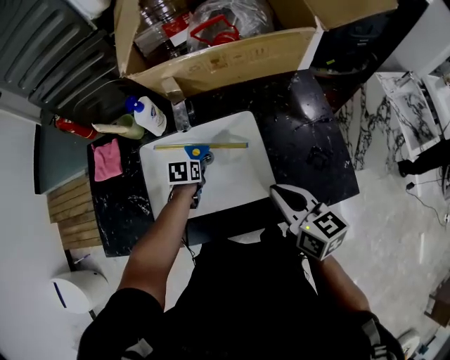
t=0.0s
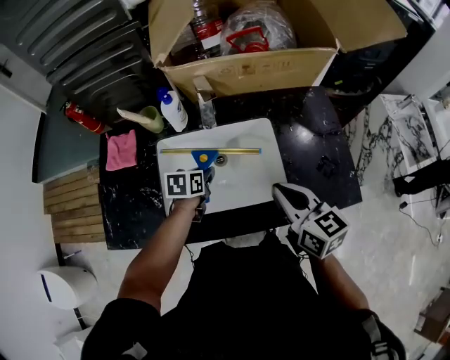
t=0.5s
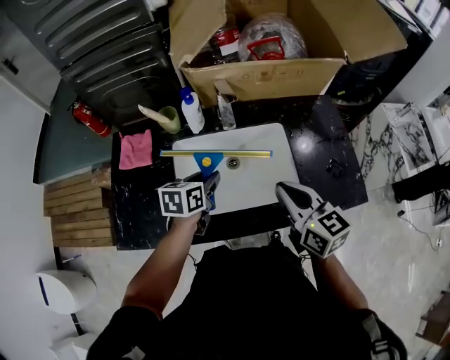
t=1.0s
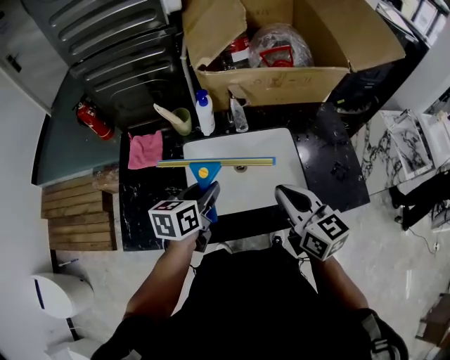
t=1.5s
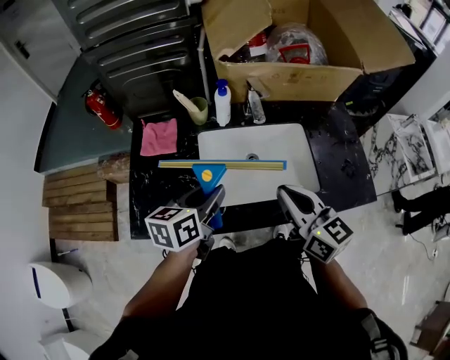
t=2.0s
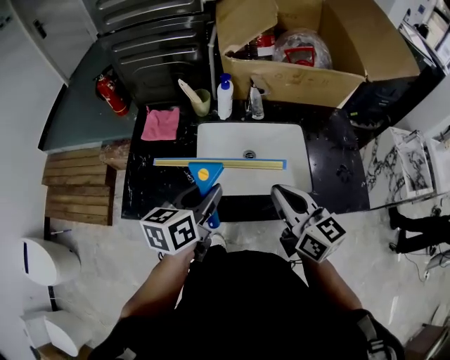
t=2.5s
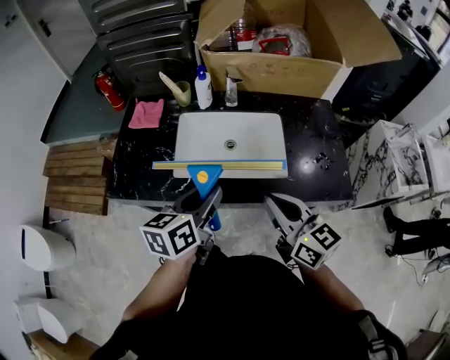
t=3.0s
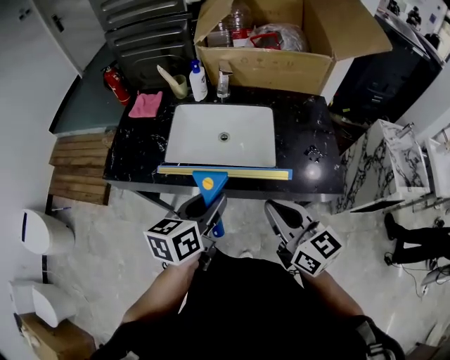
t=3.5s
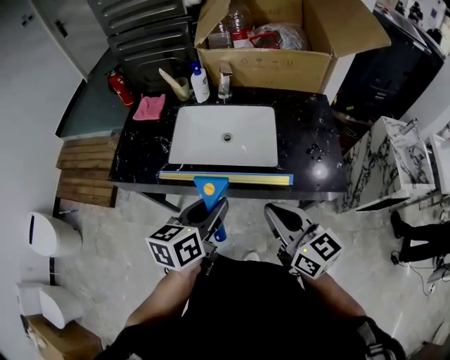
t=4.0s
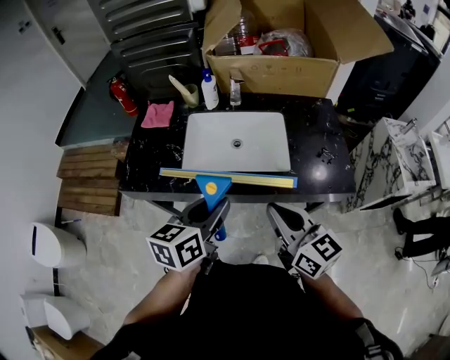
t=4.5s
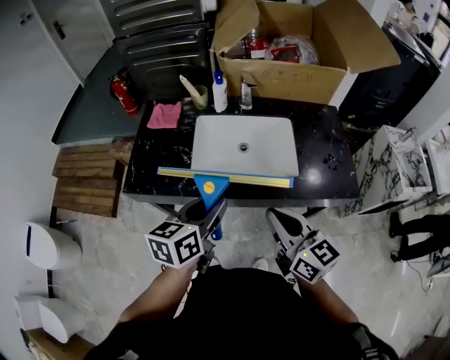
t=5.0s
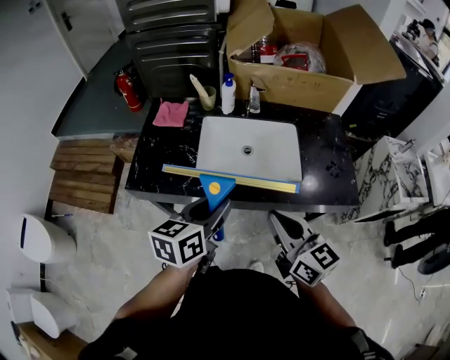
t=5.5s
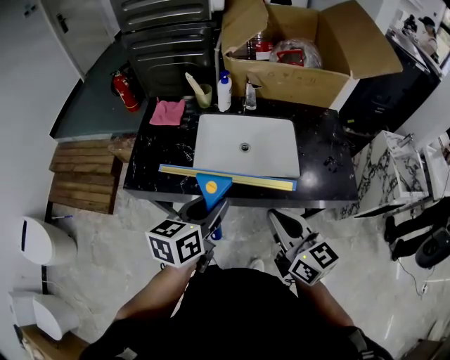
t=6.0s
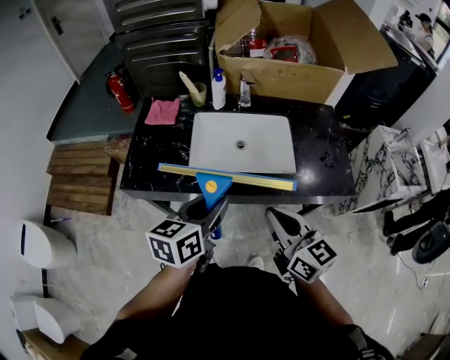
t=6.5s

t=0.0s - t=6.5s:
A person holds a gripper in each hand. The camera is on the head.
t=0.0s - t=2.0s: The left gripper shifts some 35 cm upward, backward and to the left, and angles its fingers upward, by about 40 degrees. Meanwhile the right gripper is displaced to the left by approximately 20 cm.
t=2.0s - t=4.5s: Both grippers move backward and to the right, about 20 cm.
t=4.5s - t=6.5s: The grippers both shift to the left by roughly 5 cm.

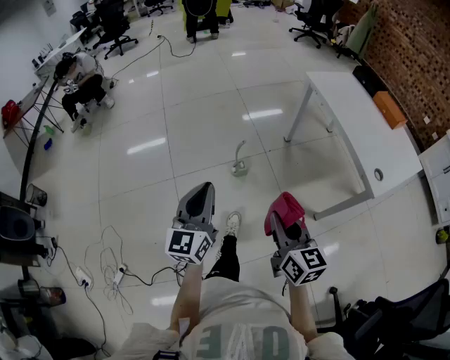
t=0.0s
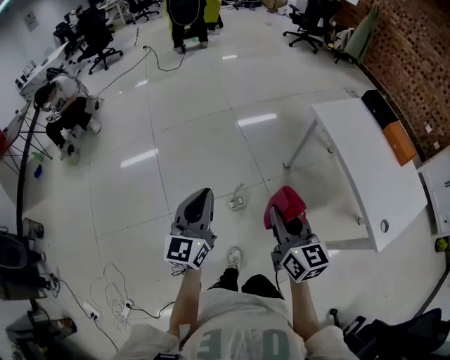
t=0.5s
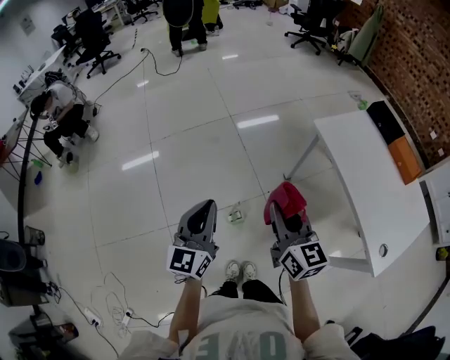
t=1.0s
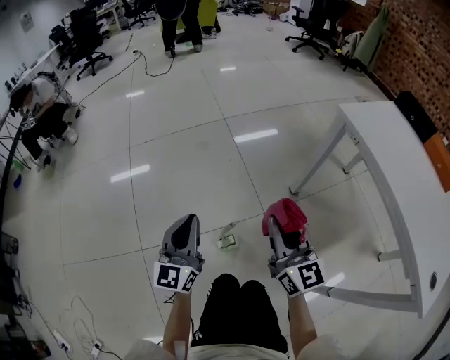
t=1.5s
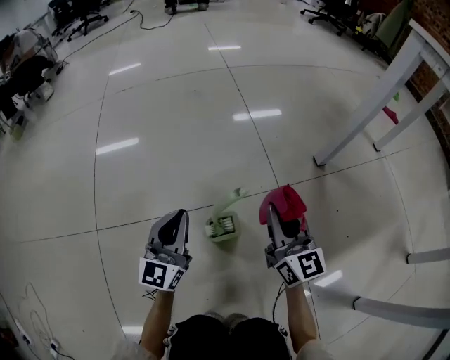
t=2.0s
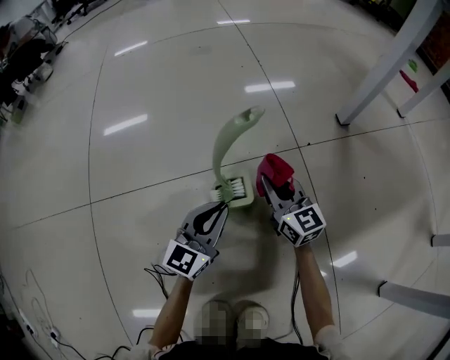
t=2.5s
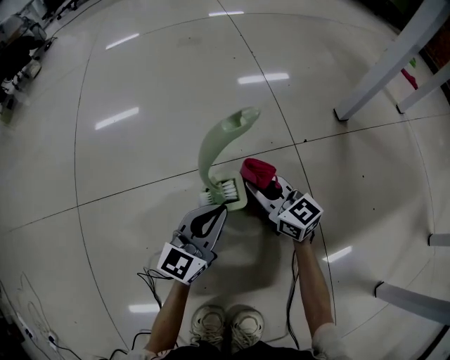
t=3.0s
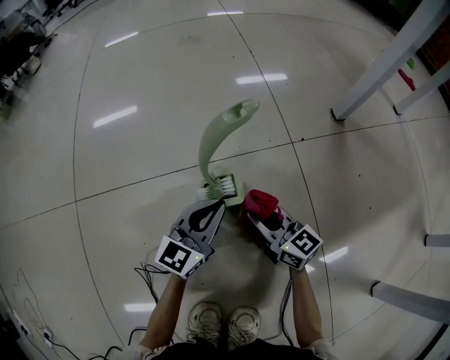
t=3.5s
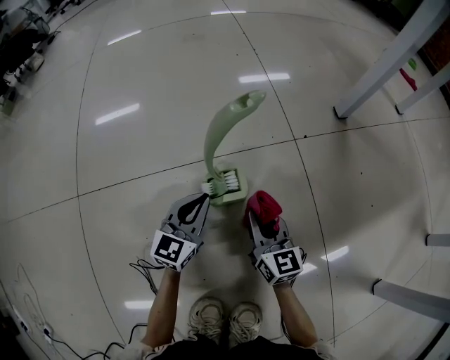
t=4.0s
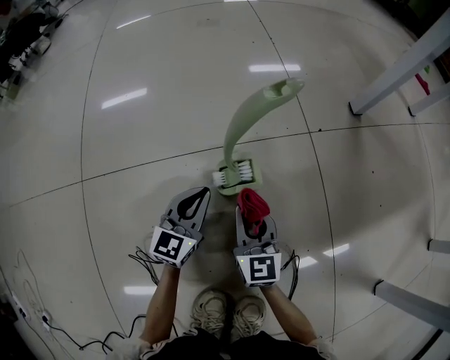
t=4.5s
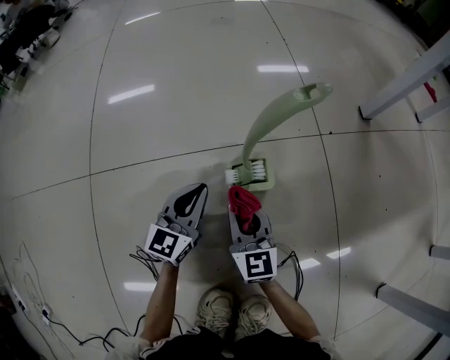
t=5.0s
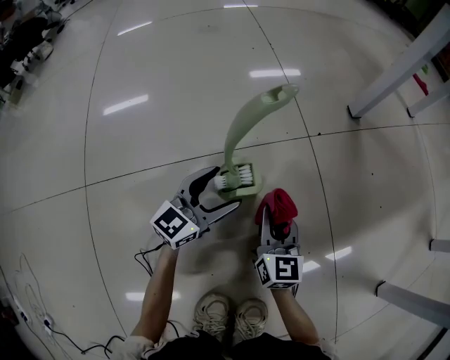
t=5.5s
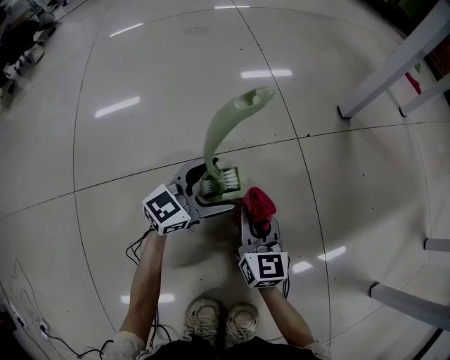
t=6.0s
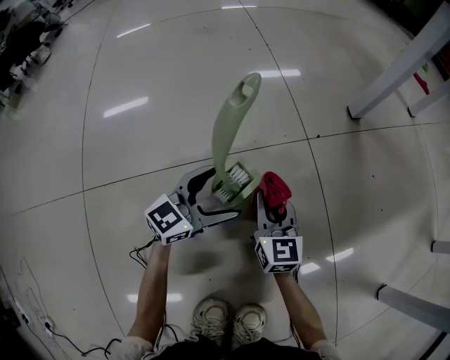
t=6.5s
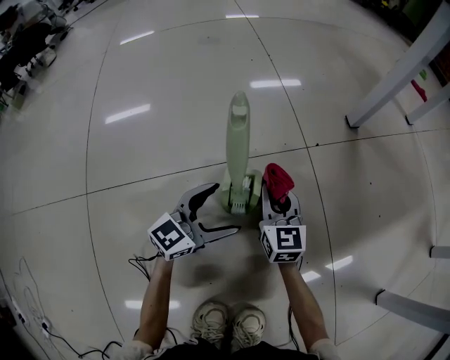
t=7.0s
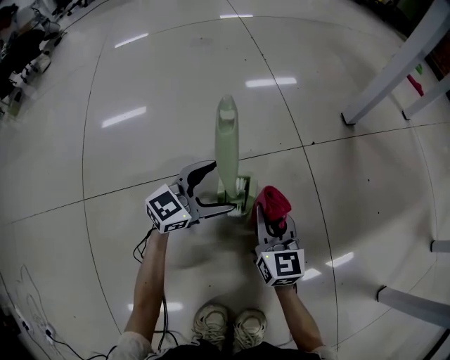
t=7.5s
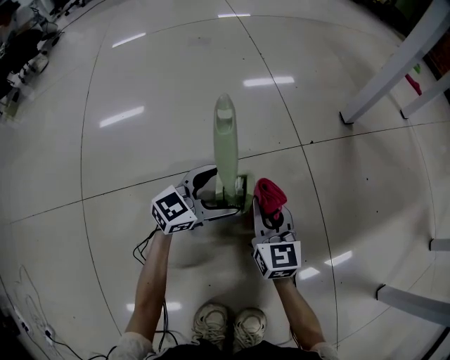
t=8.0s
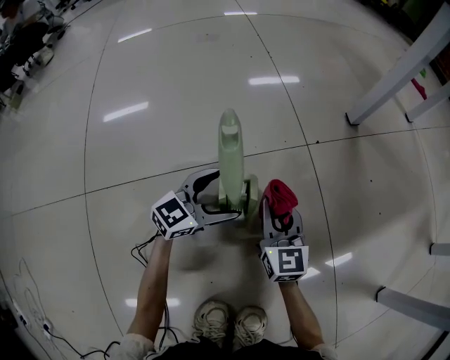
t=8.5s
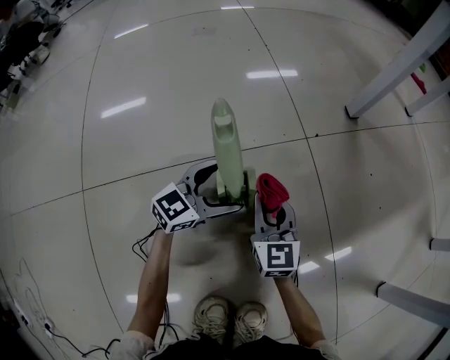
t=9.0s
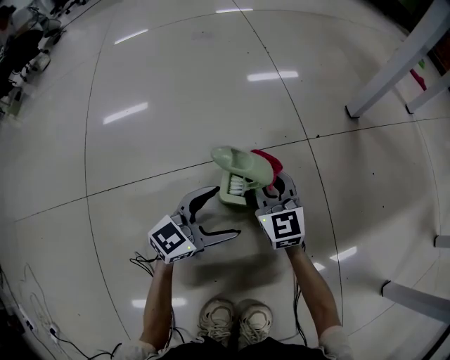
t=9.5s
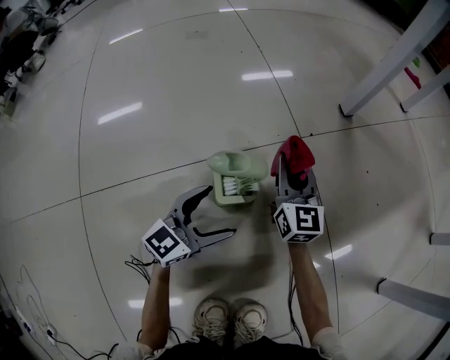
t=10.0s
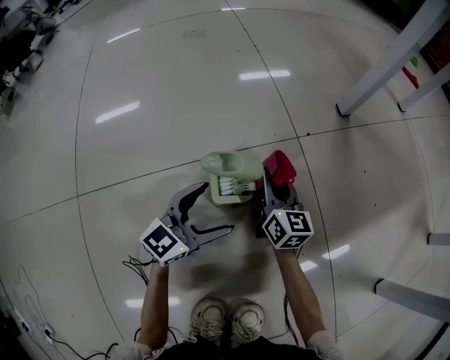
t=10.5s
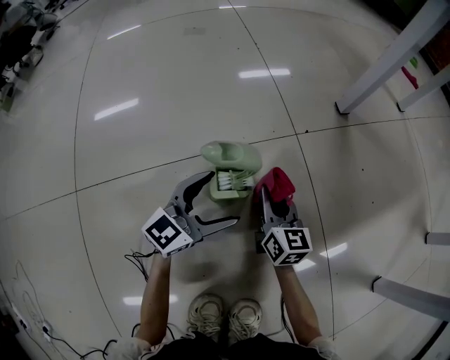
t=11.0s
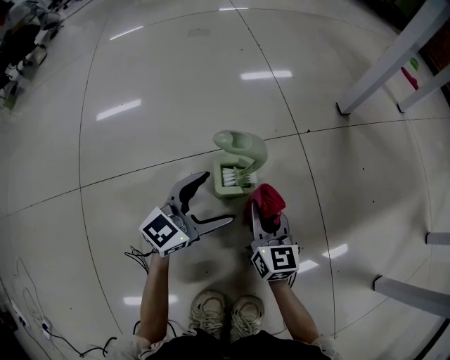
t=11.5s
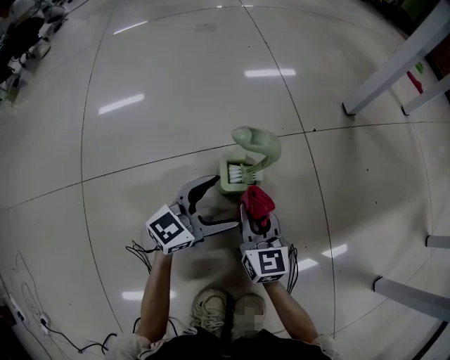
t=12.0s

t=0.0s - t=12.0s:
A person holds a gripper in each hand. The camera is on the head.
t=0.0s - t=2.0s: Both grippers are carried forward, roughly 50 cm. The grippers both shift downward by roughly 70 cm.
t=2.0s - t=4.0s: The grippers both shift downward by roughly 20 cm. The left gripper rotates approximately 20 degrees.
t=4.0s - t=6.0s: The right gripper reaches roughly 10 cm to the left, then returns; the left gripper changes place by about 5 cm, turns by approximately 30 degrees, and opens.
t=8.0s - t=10.0s: The right gripper goes some 10 cm forward. The left gripper shifts approximately 5 cm backward.
t=10.0s - t=12.0s: The right gripper travels backward by approximately 15 cm.

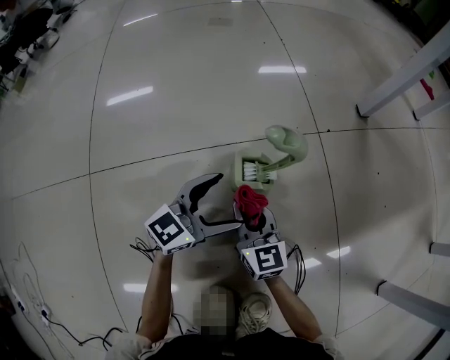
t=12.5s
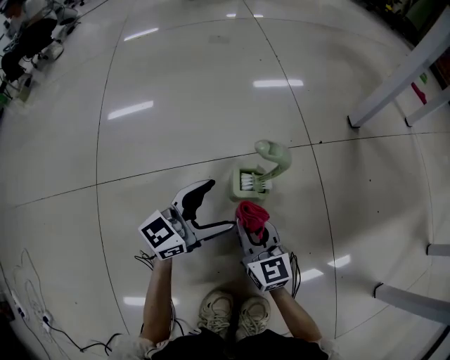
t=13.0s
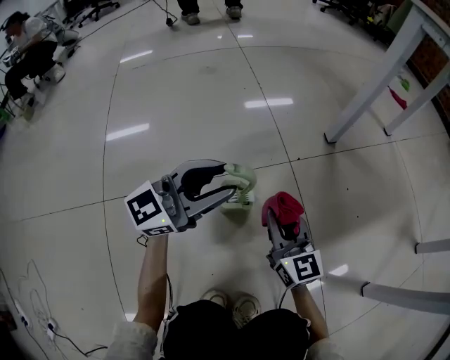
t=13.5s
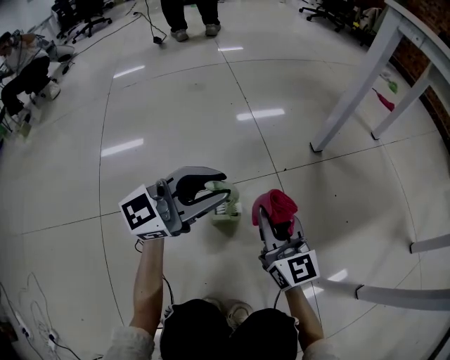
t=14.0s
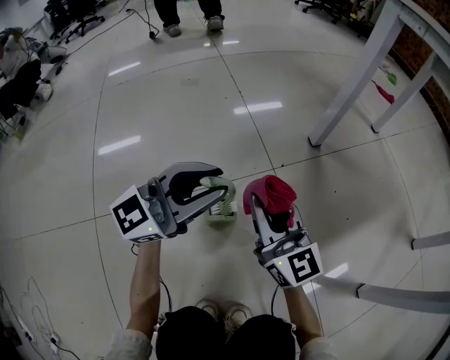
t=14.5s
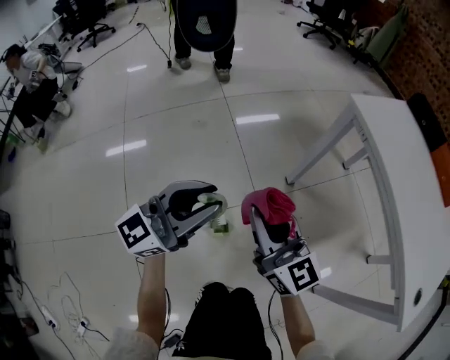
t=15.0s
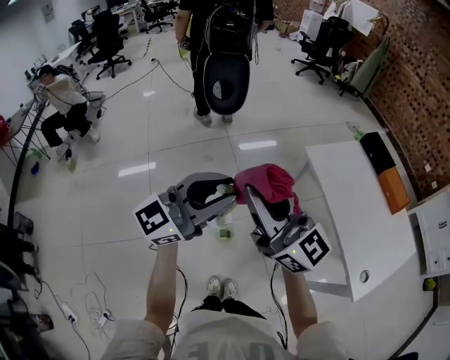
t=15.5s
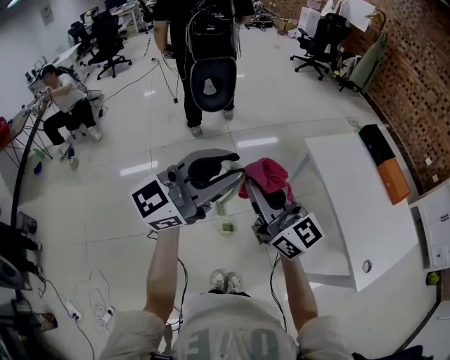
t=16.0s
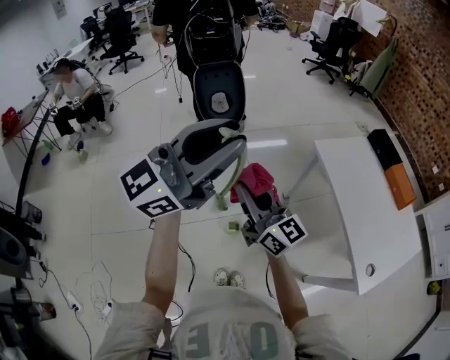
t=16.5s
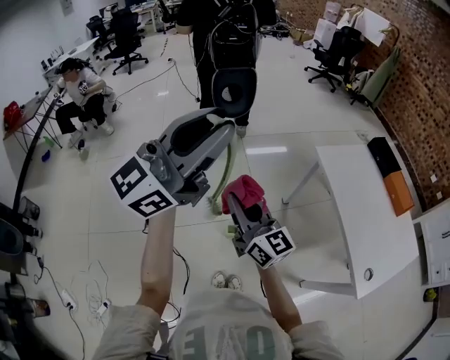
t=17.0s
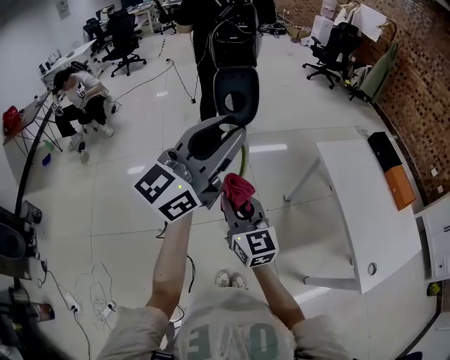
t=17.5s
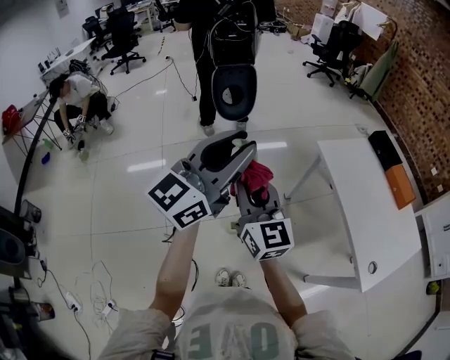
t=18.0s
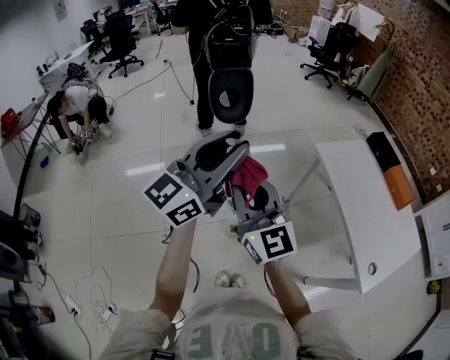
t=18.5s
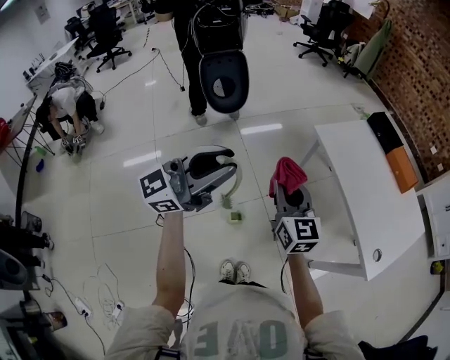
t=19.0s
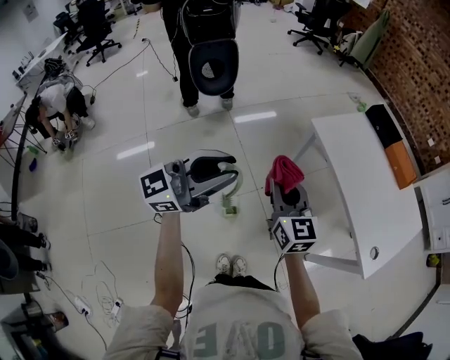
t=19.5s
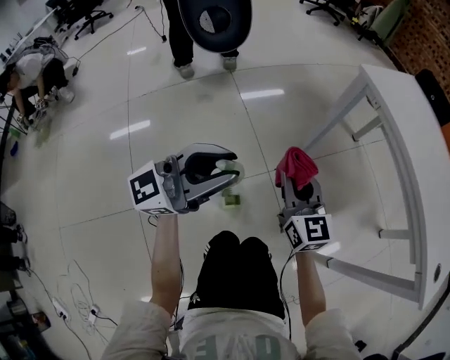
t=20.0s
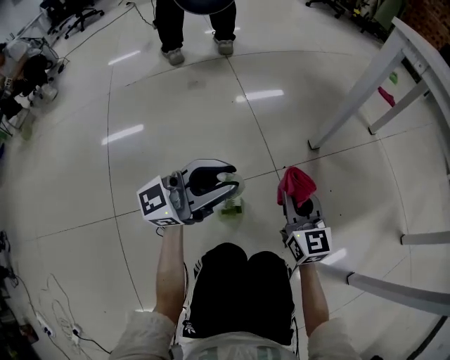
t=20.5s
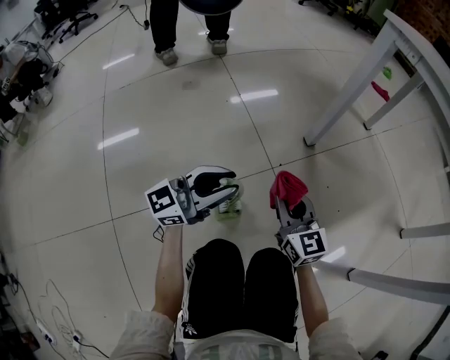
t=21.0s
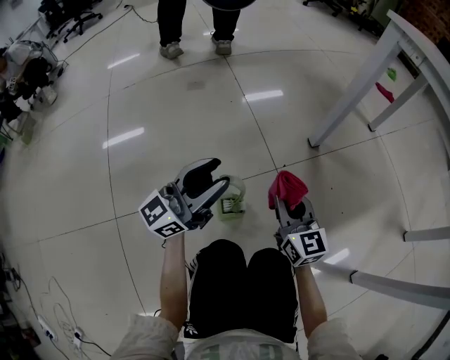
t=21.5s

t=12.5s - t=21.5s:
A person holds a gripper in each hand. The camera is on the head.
t=12.5s - t=14.5s: Both grippers move upward, roughly 25 cm. The left gripper rotates about 30 degrees, and closes, while the right gripper rotates approximately 20 degrees.
t=14.5s - t=17.0s: Both grippers move upward, approximately 80 cm. The left gripper changes its angle by some 20 degrees.
t=17.0s - t=19.5s: The left gripper travels downward by about 20 cm, and changes its angle by approximately 30 degrees; the right gripper shifts by roughly 15 cm, and changes its angle by roughly 30 degrees.
t=19.5s - t=21.5s: The two grippers go about 70 cm downward.
